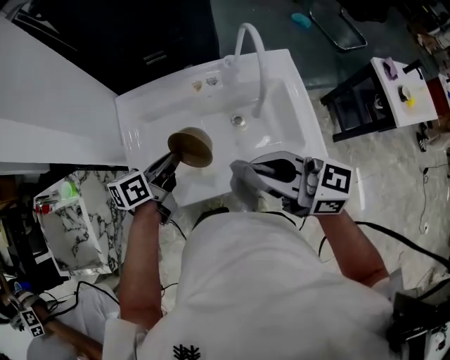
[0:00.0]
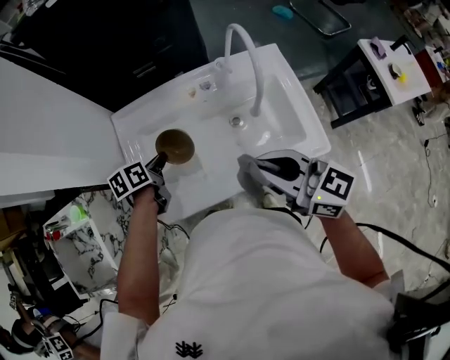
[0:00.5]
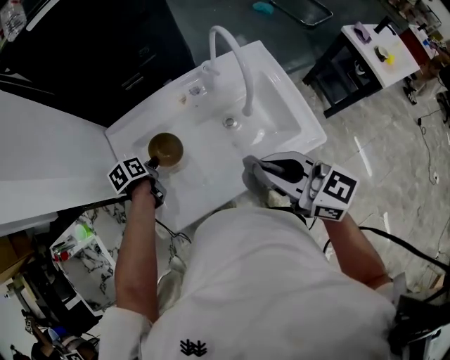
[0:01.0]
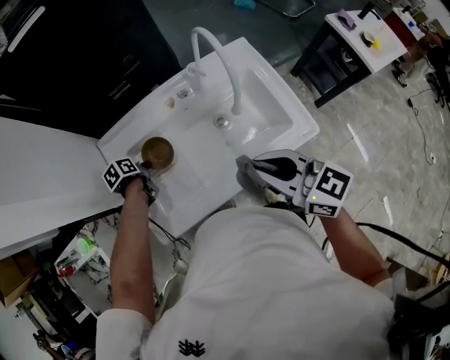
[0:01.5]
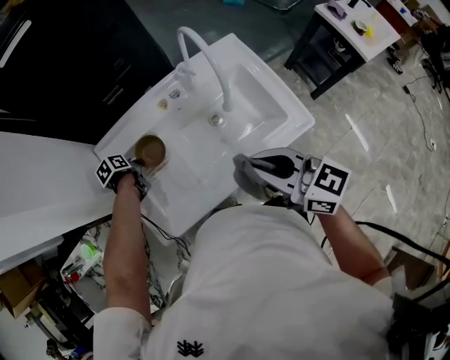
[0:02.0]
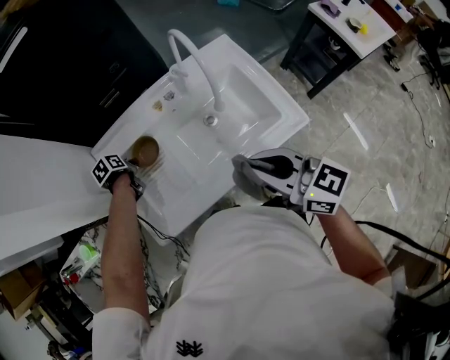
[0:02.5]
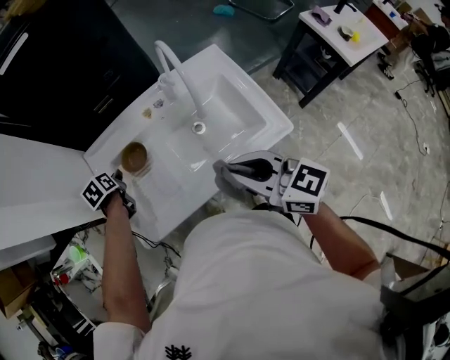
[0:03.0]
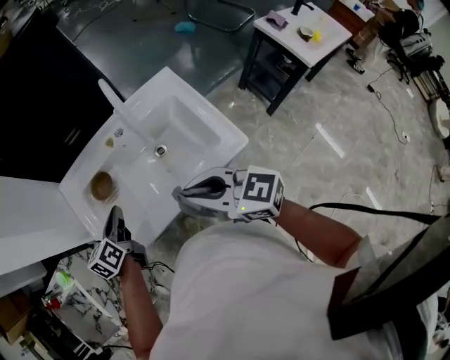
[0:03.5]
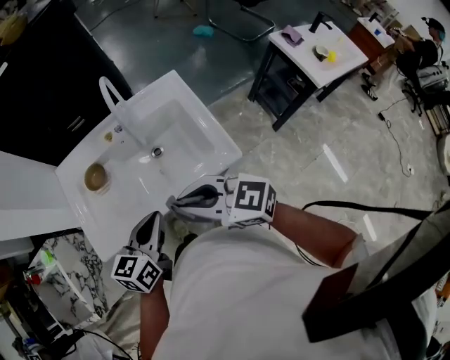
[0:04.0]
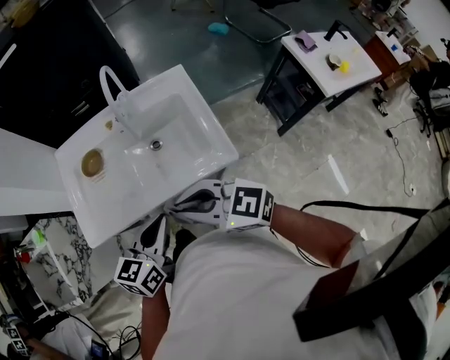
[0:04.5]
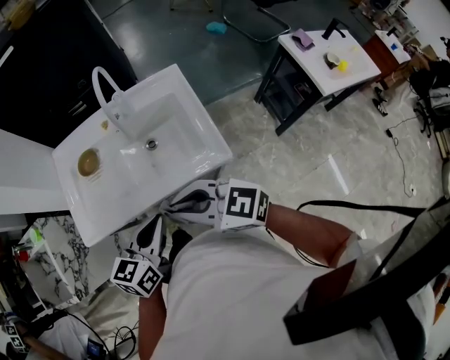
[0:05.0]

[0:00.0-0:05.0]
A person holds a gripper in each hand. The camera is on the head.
0:00.0 to 0:02.5: The right gripper swivels approximately 30 degrees; the left gripper shifts approximately 25 cm downward, forward and to the left, and points its fingers roughly 40 degrees further downward.
0:02.5 to 0:05.0: The left gripper goes some 50 cm backward, to the right and upward, and tilts its fingers approximately 40 degrees upward, while the right gripper travels backward and to the right by roughly 10 cm, and changes its angle by approximately 40 degrees.

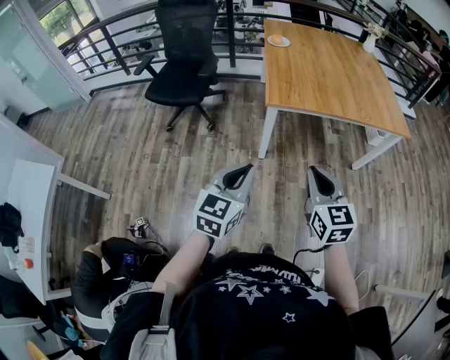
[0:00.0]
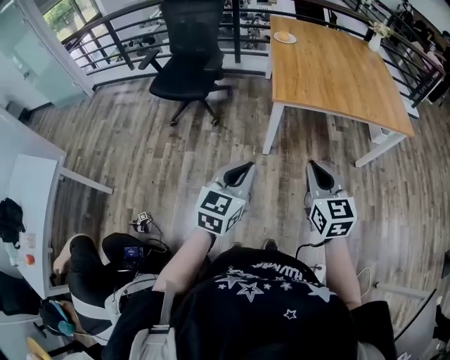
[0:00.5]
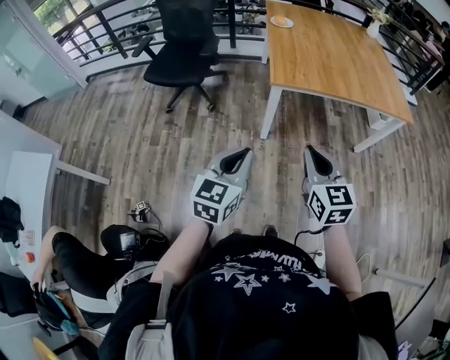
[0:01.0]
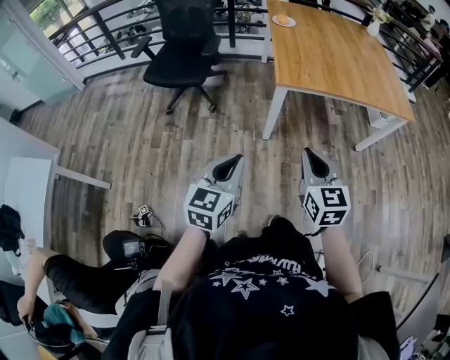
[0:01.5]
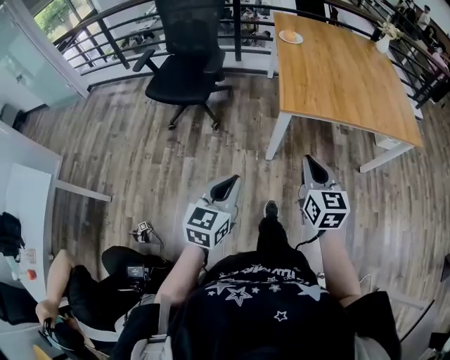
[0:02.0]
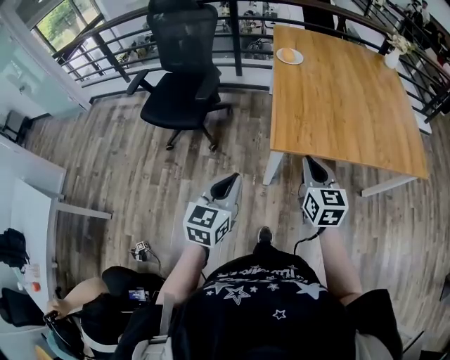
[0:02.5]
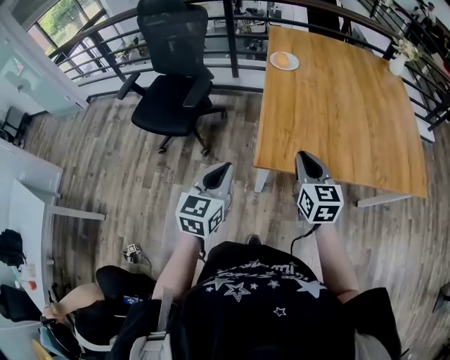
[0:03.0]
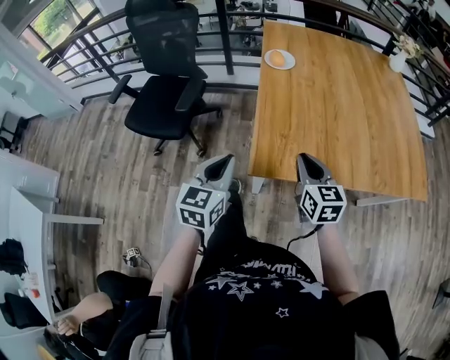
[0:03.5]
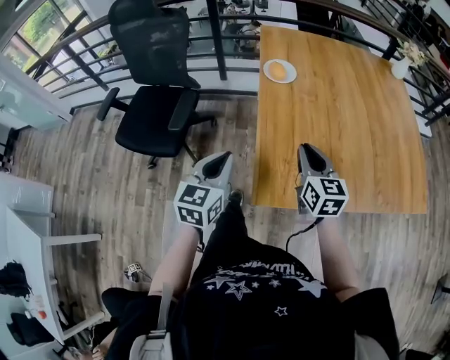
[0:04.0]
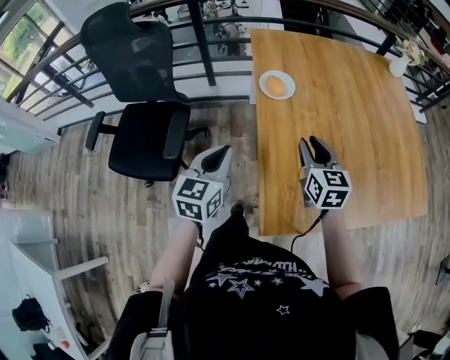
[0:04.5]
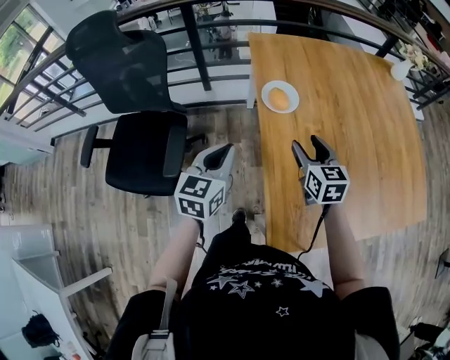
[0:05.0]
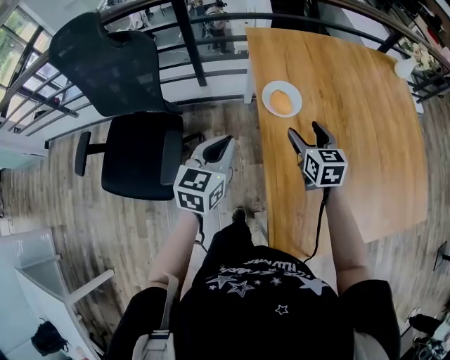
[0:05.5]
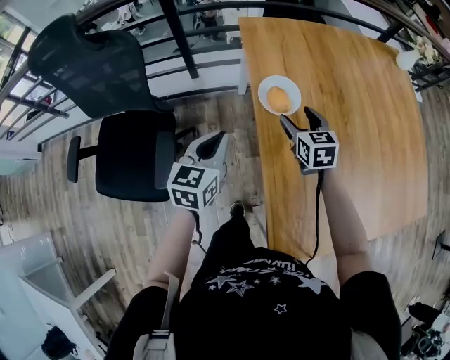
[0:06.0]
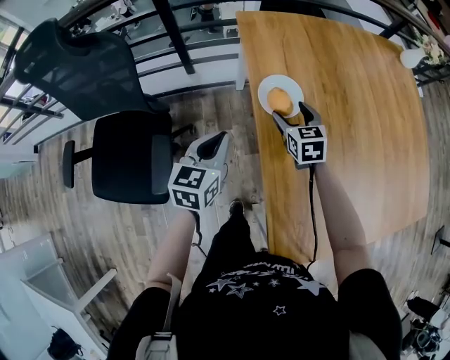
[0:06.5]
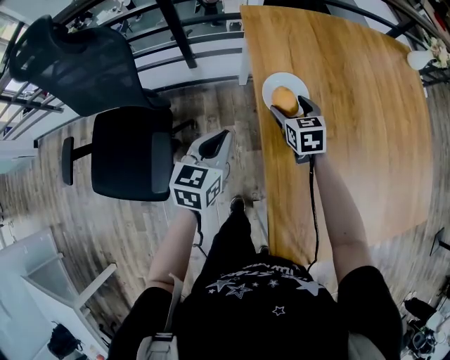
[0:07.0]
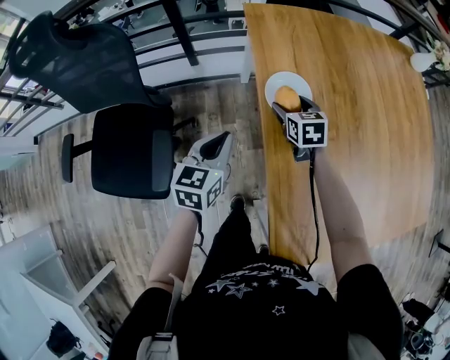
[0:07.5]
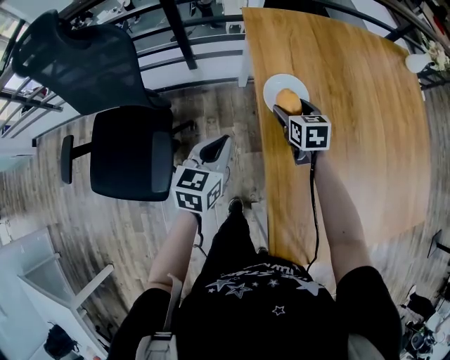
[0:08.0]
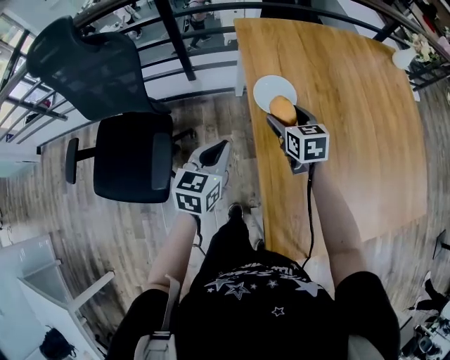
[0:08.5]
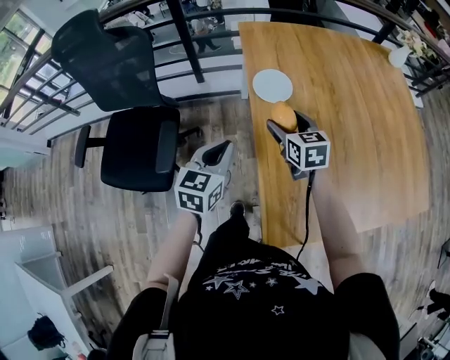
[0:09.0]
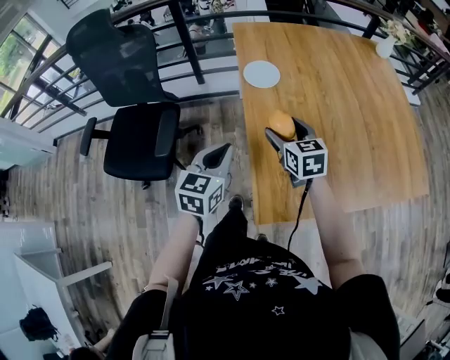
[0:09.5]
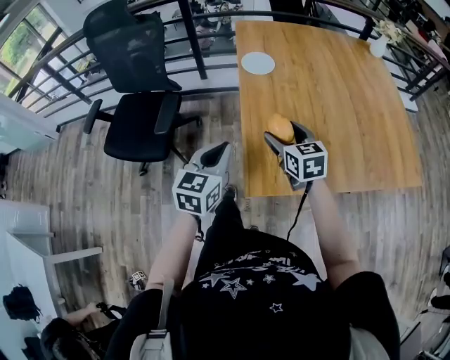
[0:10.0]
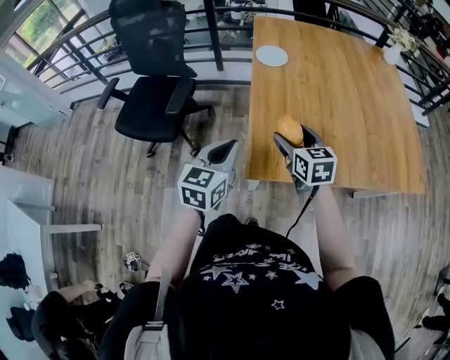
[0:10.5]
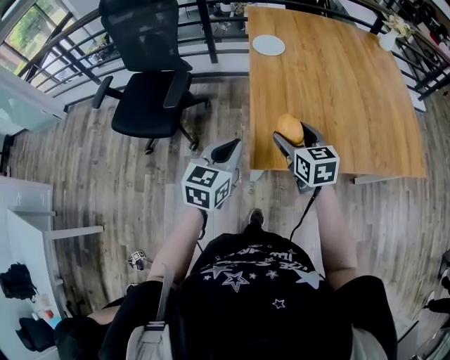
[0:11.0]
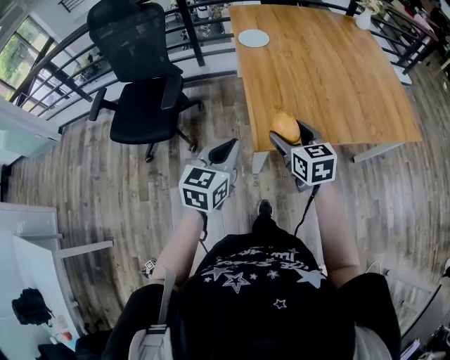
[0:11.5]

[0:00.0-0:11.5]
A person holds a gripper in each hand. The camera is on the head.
0:00.0 to 0:02.0: The left gripper travels to the left and downward by approximately 10 cm, while the right gripper shifts about 15 cm forward, to the left and downward.
0:02.0 to 0:04.0: The two grippers travel together, forward, about 50 cm.
0:04.0 to 0:06.0: Both grippers travel together forward, roughly 30 cm. The right gripper opens its fingers.
0:06.0 to 0:07.5: The right gripper heads downward and forward, covering approximately 10 cm. Meanwhile the left gripper travels downward by approximately 5 cm.
0:07.5 to 0:09.5: The right gripper goes some 30 cm backward and upward, while the left gripper is displaced backward by some 25 cm.
0:09.5 to 0:11.5: Both grippers travel together backward, some 25 cm.

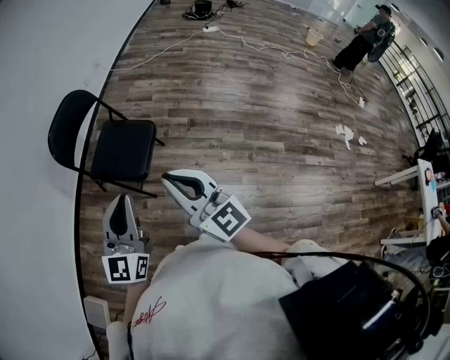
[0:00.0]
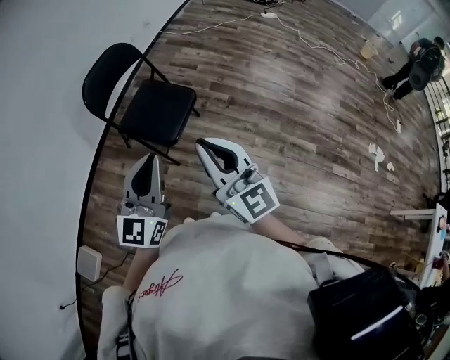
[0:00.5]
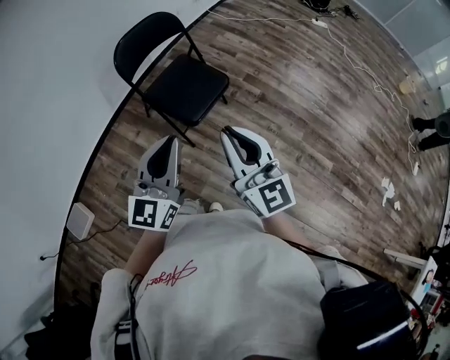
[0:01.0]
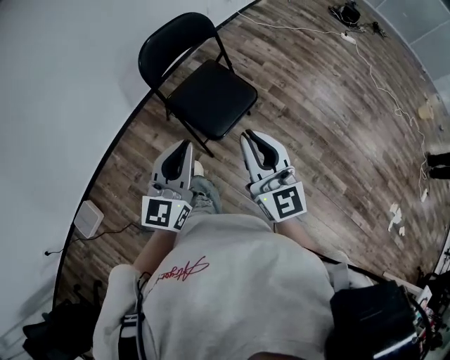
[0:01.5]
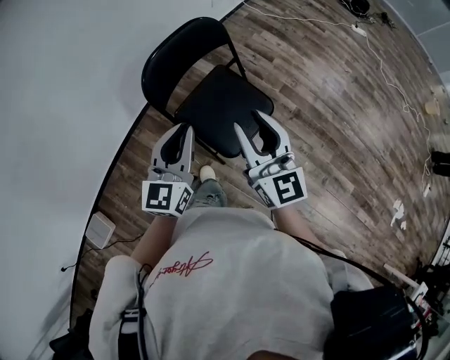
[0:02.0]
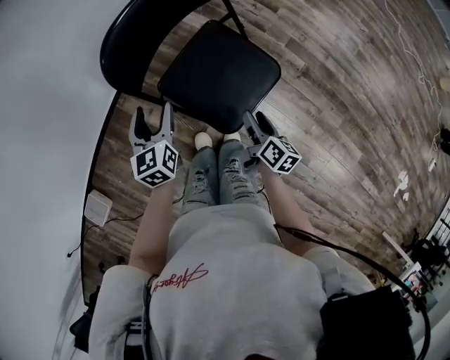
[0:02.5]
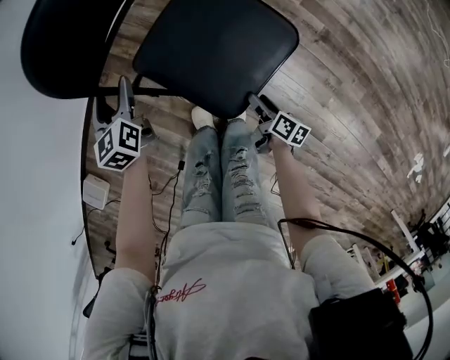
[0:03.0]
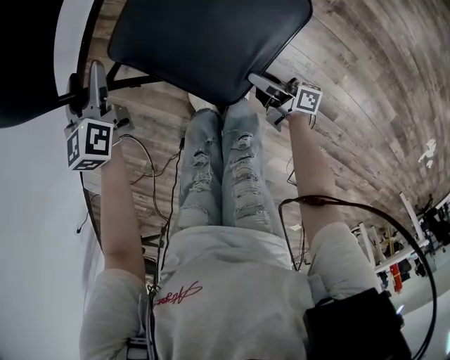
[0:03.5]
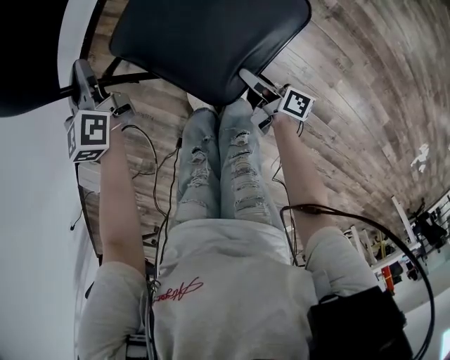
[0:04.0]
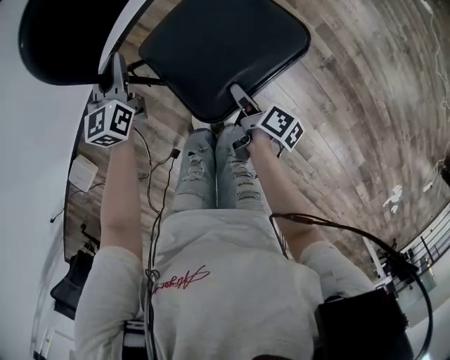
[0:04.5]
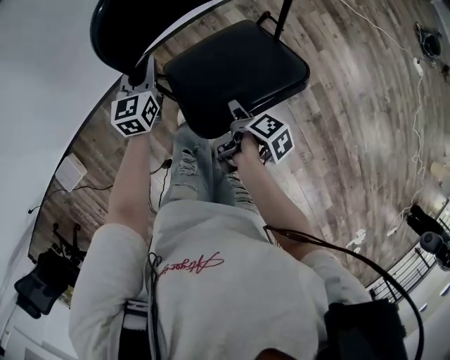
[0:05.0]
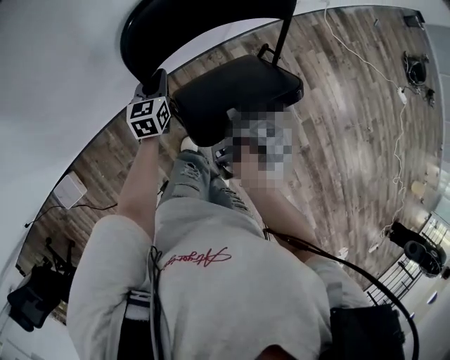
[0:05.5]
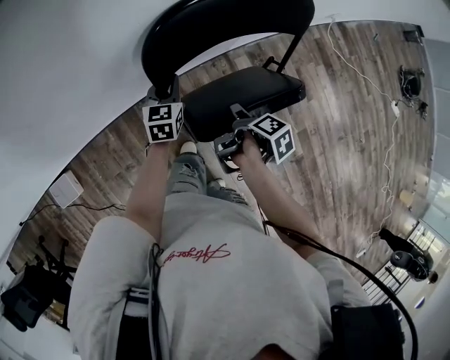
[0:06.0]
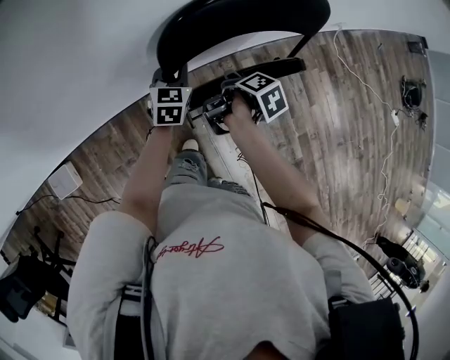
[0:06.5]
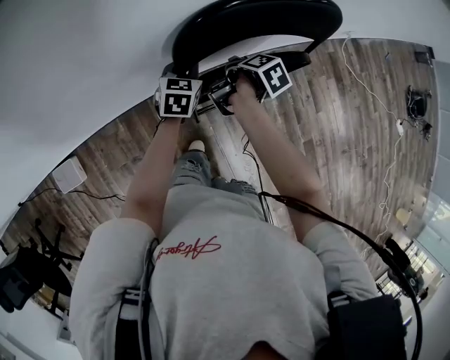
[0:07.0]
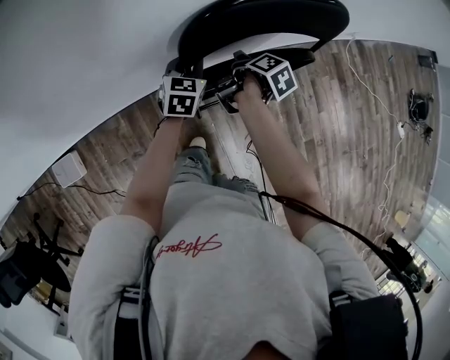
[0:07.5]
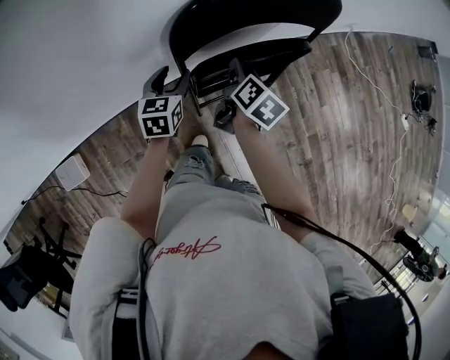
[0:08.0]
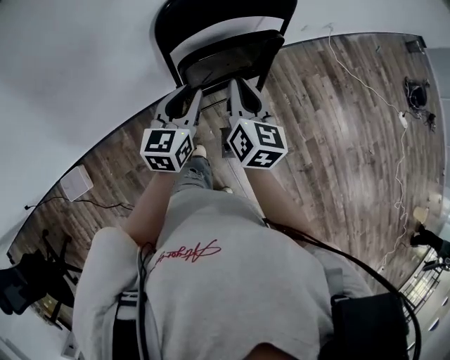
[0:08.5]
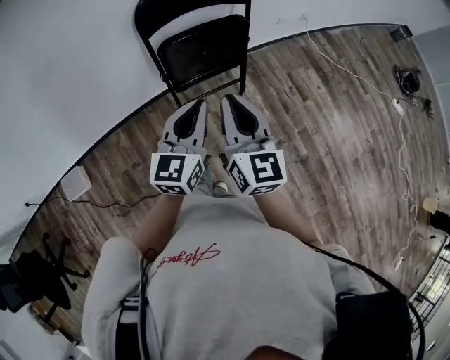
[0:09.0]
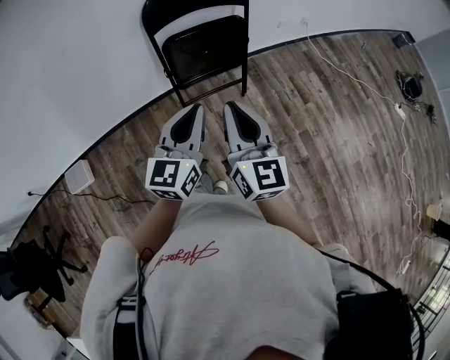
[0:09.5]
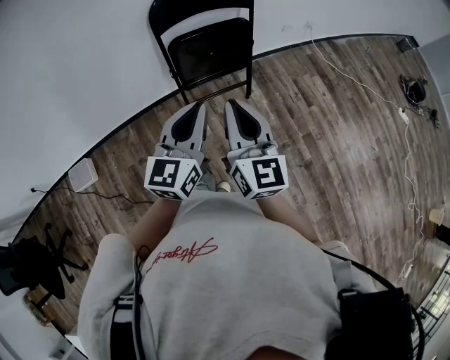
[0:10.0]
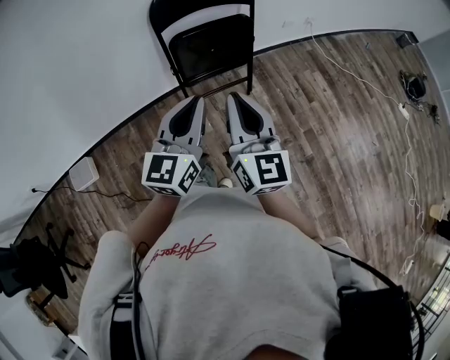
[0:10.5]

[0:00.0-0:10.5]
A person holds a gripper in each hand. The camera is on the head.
0:00.0 to 0:02.0: The right gripper goes approximately 35 cm forward, and opens up. The left gripper shifts about 35 cm forward and to the left, and swivels some 20 degrees.
0:02.0 to 0:04.0: The left gripper goes about 40 cm downward and forward, changes its angle by roughly 30 degrees, and opens, then closes once more; the right gripper travels downward by some 50 cm, twists about 80 degrees clockwise, seen from behind, and opens up.
0:04.0 to 0:06.5: The right gripper travels forward, upward and to the left by about 60 cm, and points its fingers about 40 degrees further downward; the left gripper heads forward, upward and to the left, covering approximately 25 cm.
0:06.5 to 0:08.5: The left gripper travels backward and upward by some 20 cm, rotates about 20 degrees, and opens and closes again, while the right gripper travels upward and backward by about 20 cm, tips its fingers upward by approximately 40 degrees, and closes its fingers.
0:08.5 to 0:10.5: The left gripper is displaced backward, upward and to the right by roughly 30 cm. The right gripper moves backward and upward, some 30 cm, and swivels about 20 degrees.
